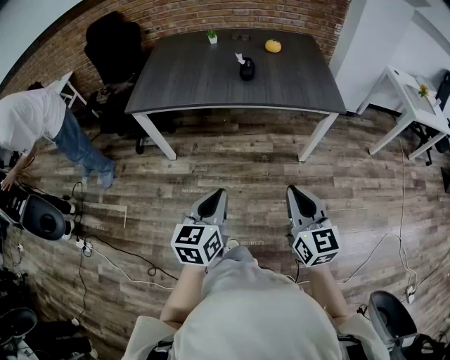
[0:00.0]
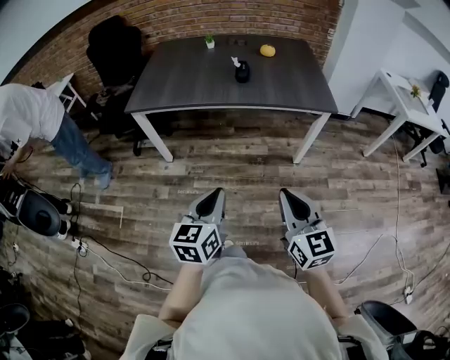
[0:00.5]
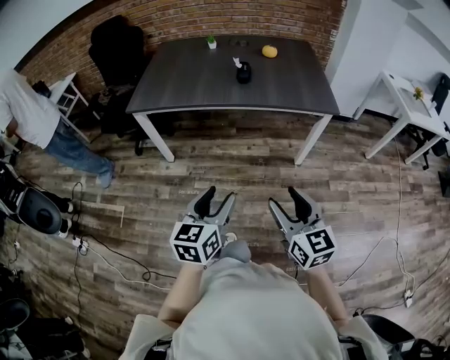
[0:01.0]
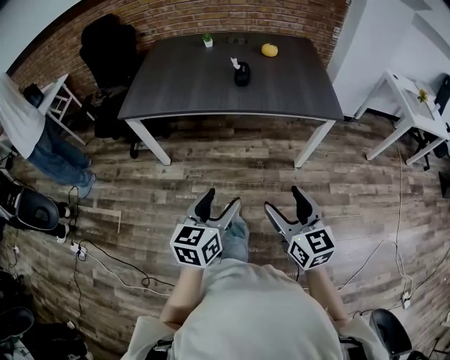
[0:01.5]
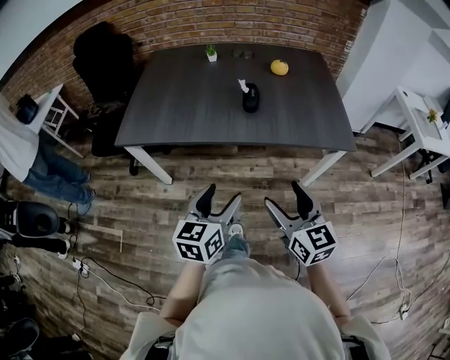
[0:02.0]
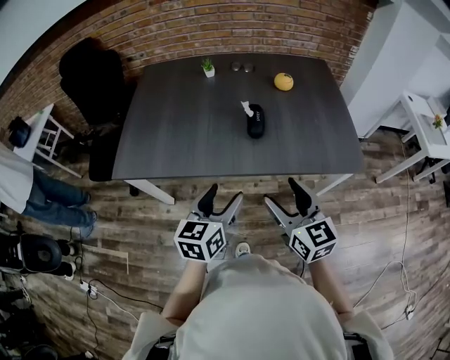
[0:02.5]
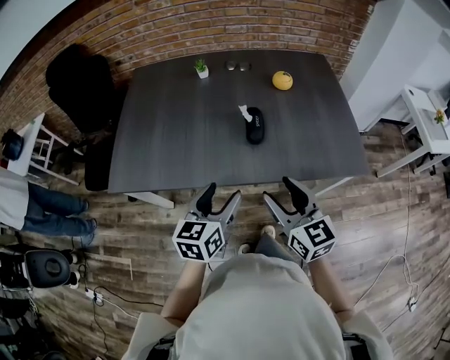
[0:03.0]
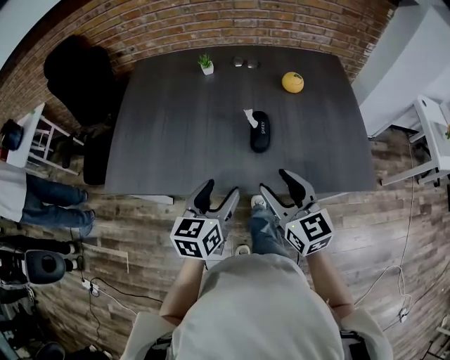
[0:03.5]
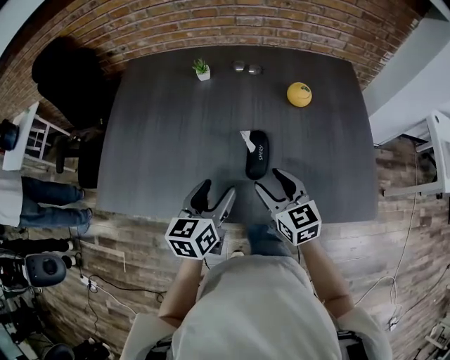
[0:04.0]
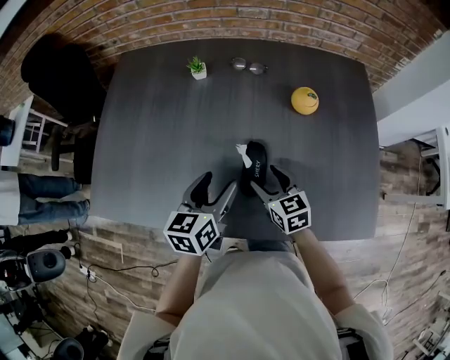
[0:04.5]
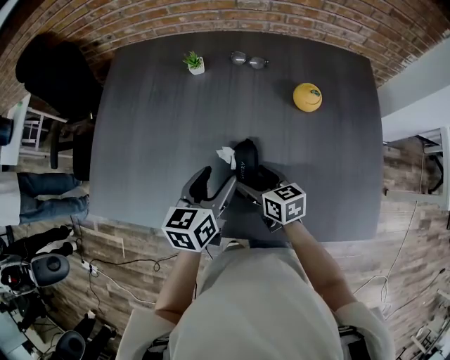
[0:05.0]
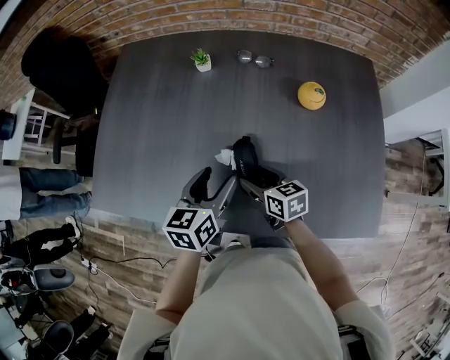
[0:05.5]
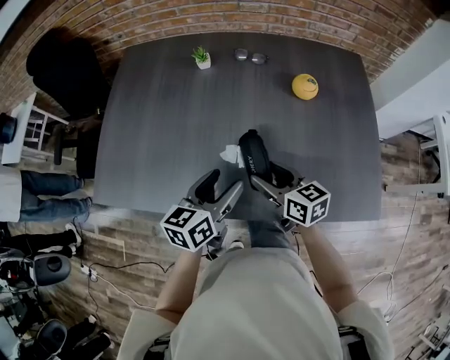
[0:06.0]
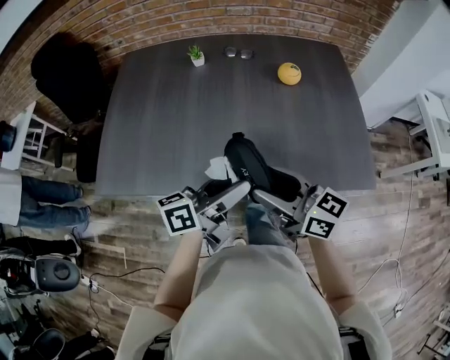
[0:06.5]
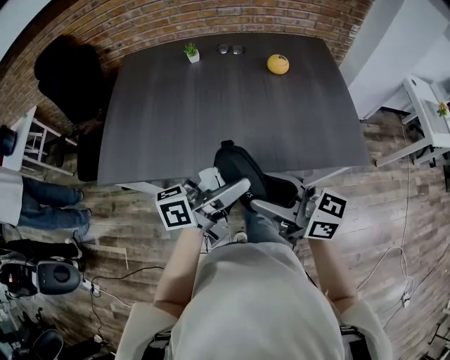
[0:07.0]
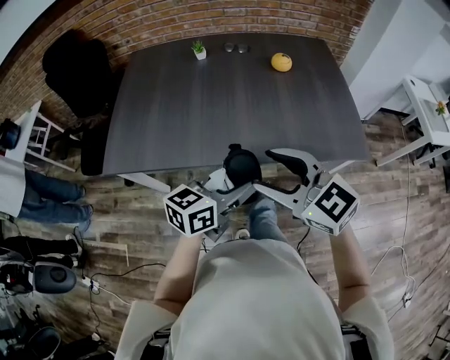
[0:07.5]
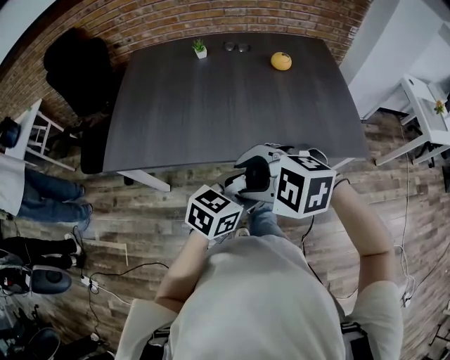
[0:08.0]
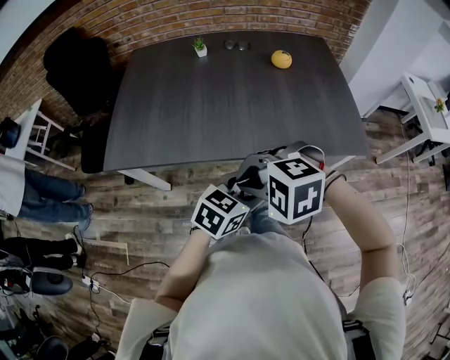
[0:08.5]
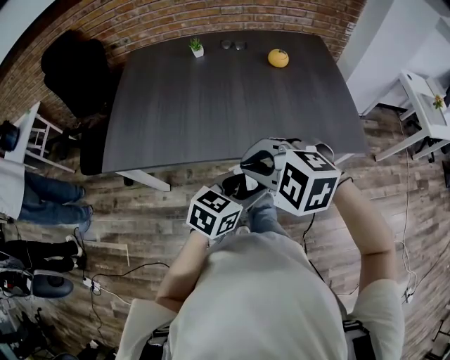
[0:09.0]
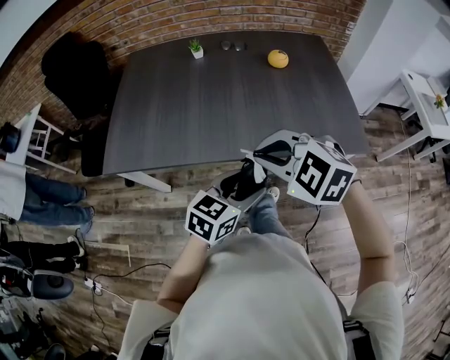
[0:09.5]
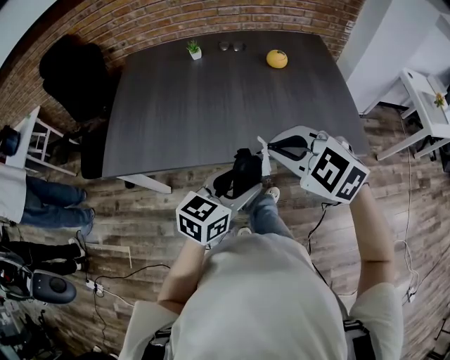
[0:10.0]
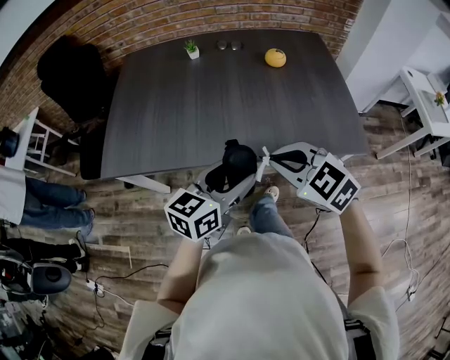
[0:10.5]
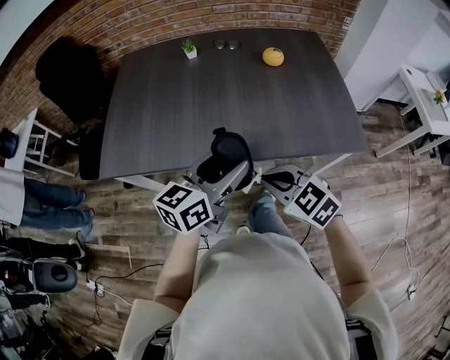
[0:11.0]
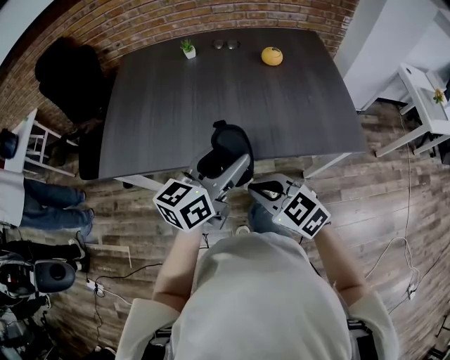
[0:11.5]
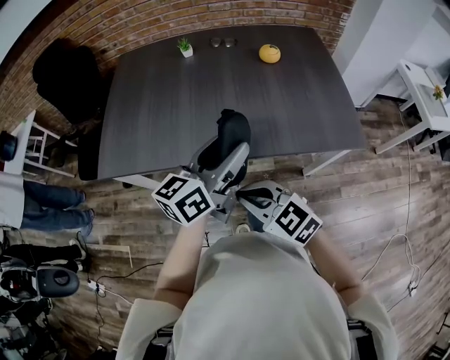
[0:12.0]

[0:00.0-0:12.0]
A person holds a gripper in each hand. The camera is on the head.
0:00.0 to 0:02.0: The grippers both shift forward by about 20 cm. The right gripper opens its fingers. The left gripper opens.
0:02.0 to 0:04.0: The grippers both shift forward by about 40 cm.
0:04.0 to 0:06.0: The left gripper reaches roughly 10 cm forward, then returns, while the right gripper reaches some 10 cm downward, then returns, and changes its angle by approximately 20 degrees.
0:06.0 to 0:08.0: The right gripper ends up about 35 cm from where it was, and rolls counterclockwise, seen from behind, by roughly 60 degrees. The left gripper goes upward and returns, roughly 10 cm each way, and turns by some 30 degrees.
0:08.0 to 0:10.0: The right gripper ends up approximately 10 cm from where it was, turns by about 20 degrees, and closes up.
0:10.0 to 0:12.0: The right gripper shifts roughly 15 cm downward, backward and to the left, and rotates approximately 30 degrees. The left gripper moves upward and forward, about 10 cm, and changes its angle by some 30 degrees.

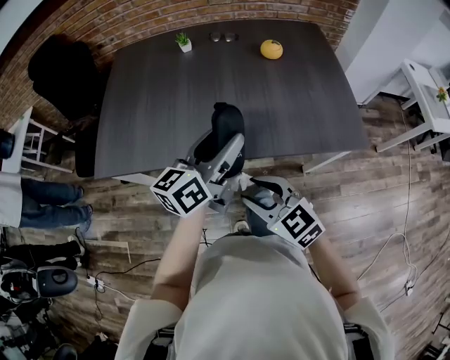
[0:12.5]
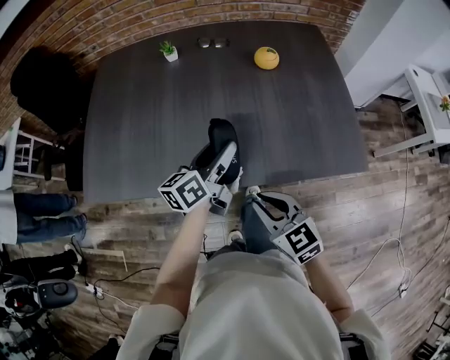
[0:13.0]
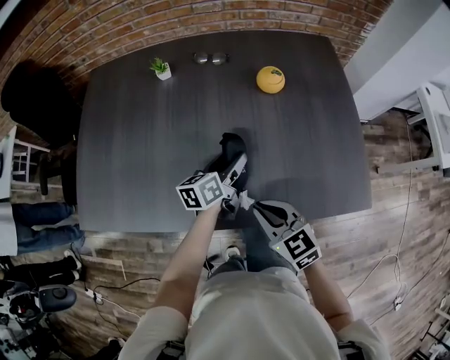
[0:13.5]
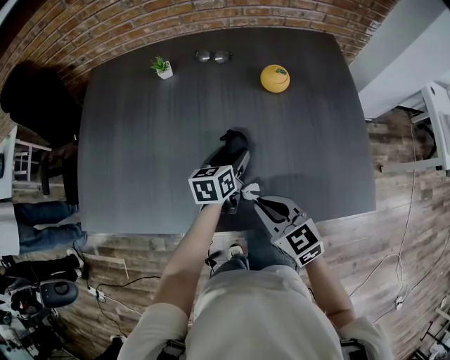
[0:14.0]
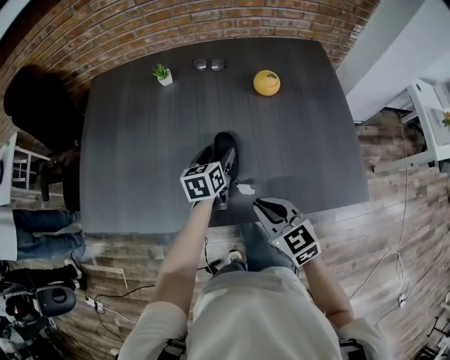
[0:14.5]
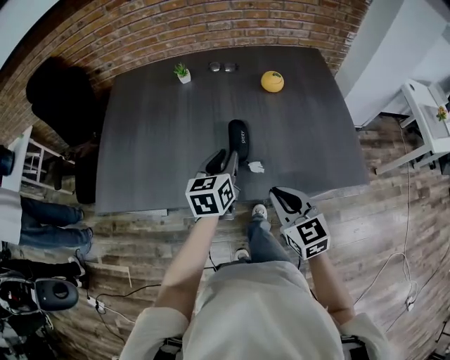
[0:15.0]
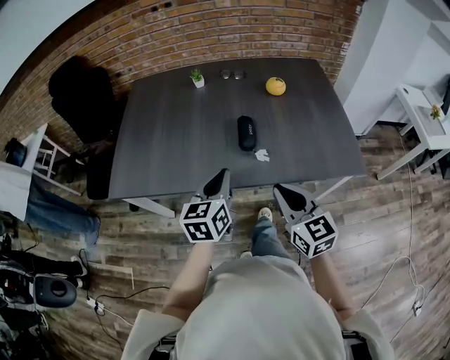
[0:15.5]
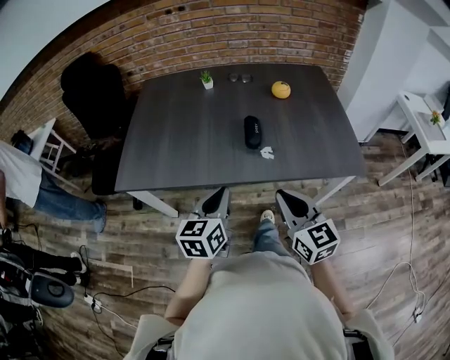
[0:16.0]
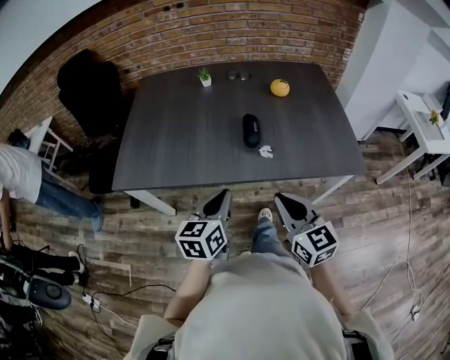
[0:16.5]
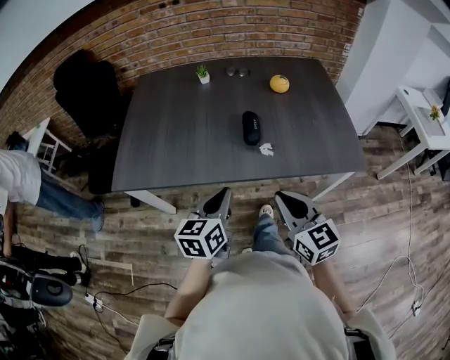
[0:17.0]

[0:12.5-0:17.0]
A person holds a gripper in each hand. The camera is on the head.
0:12.5 to 0:14.5: The right gripper moves forward and to the right, roughly 20 cm, and closes its fingers. The left gripper heads forward and downward, covering approximately 30 cm, and tilts its fingers approximately 30 degrees downward.
0:14.5 to 0:17.0: The right gripper heads backward and upward, covering approximately 20 cm. Meanwhile the left gripper heads backward and upward, covering some 35 cm, and closes.

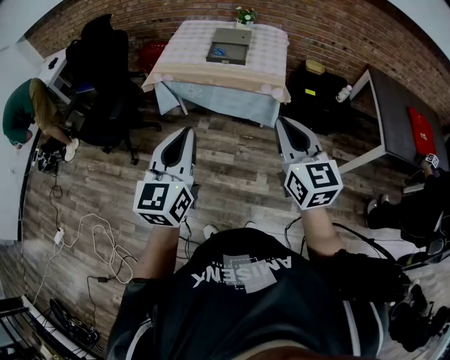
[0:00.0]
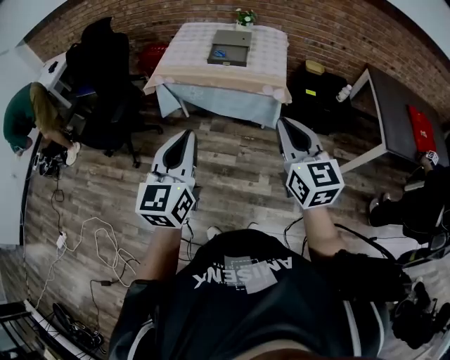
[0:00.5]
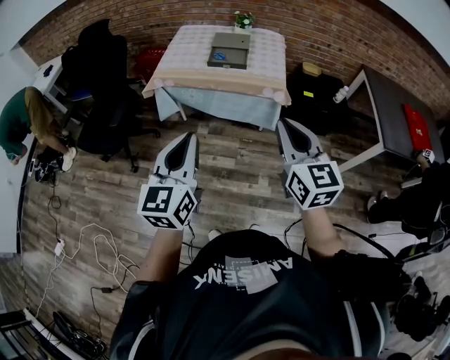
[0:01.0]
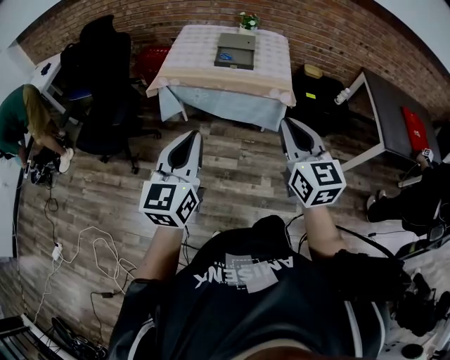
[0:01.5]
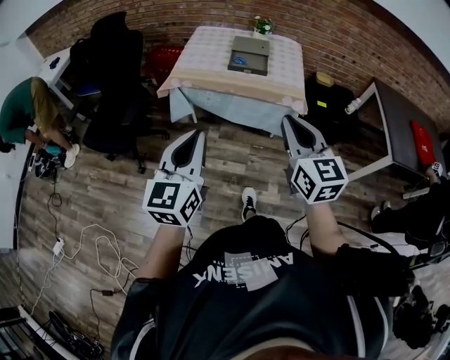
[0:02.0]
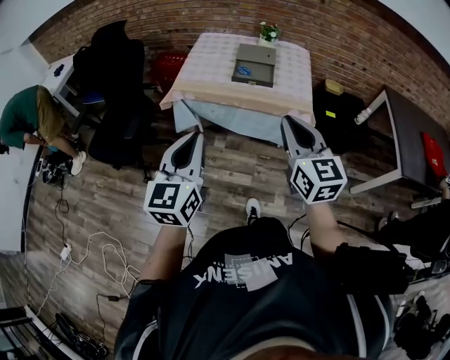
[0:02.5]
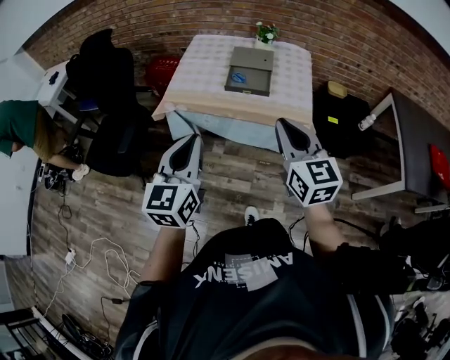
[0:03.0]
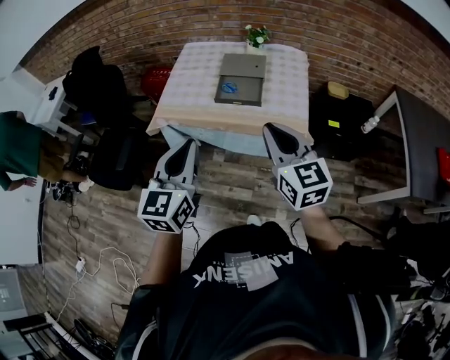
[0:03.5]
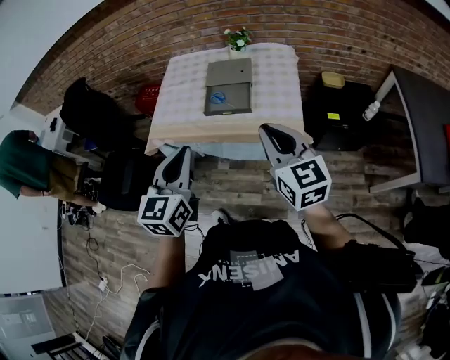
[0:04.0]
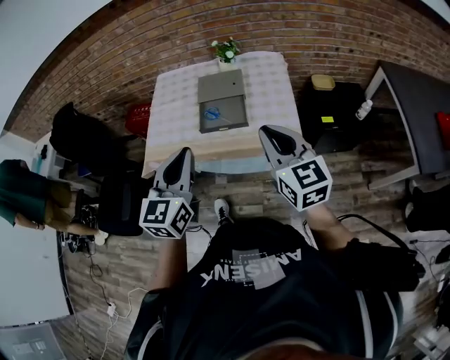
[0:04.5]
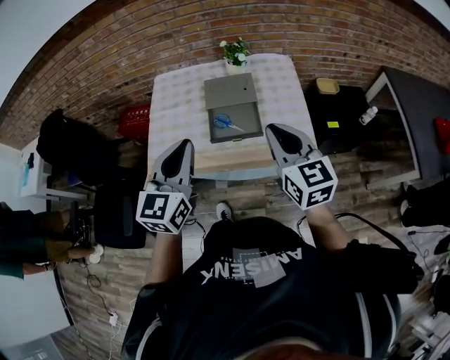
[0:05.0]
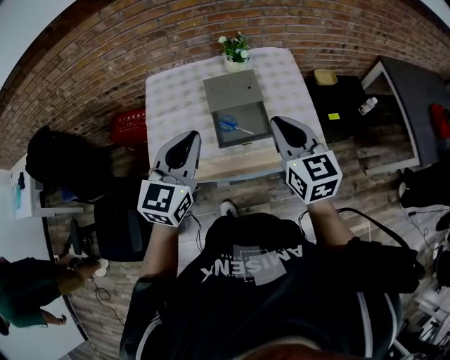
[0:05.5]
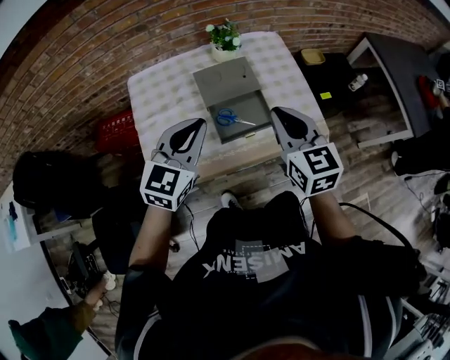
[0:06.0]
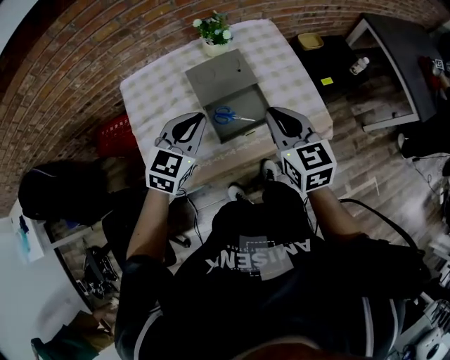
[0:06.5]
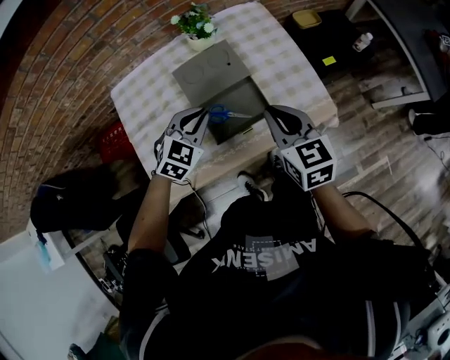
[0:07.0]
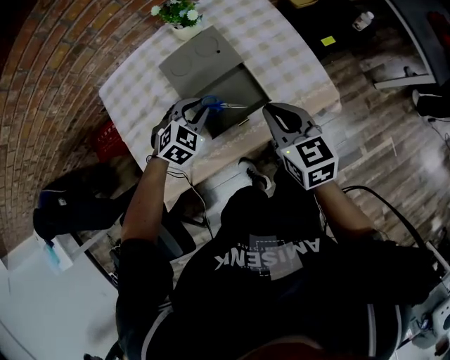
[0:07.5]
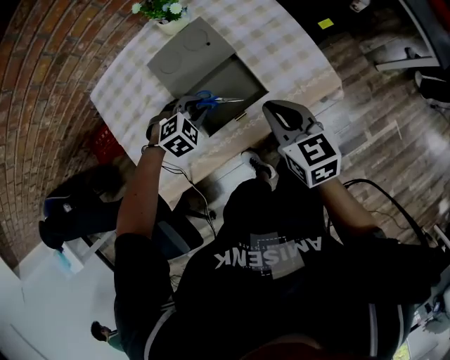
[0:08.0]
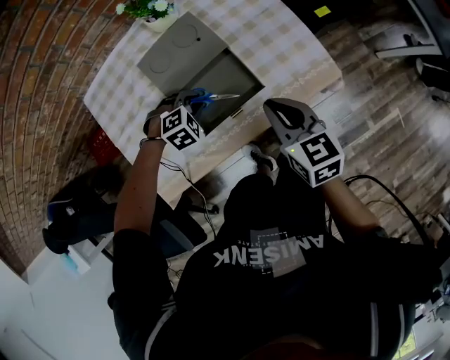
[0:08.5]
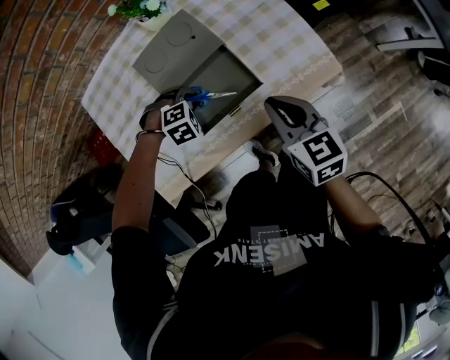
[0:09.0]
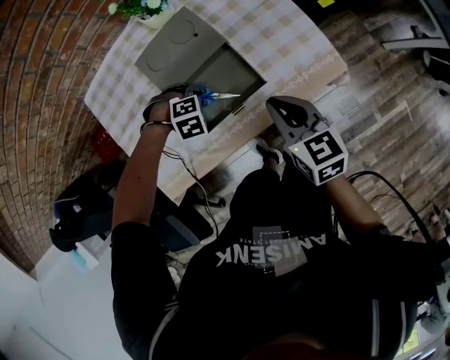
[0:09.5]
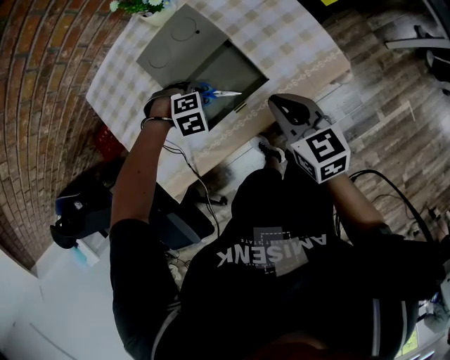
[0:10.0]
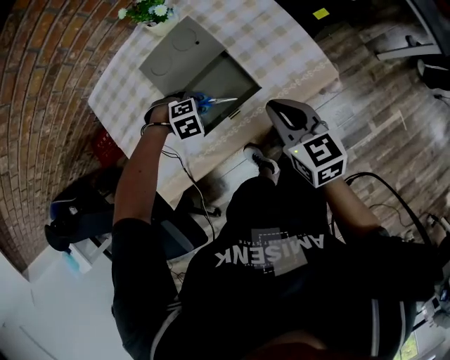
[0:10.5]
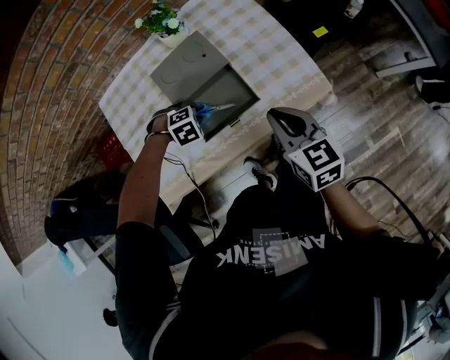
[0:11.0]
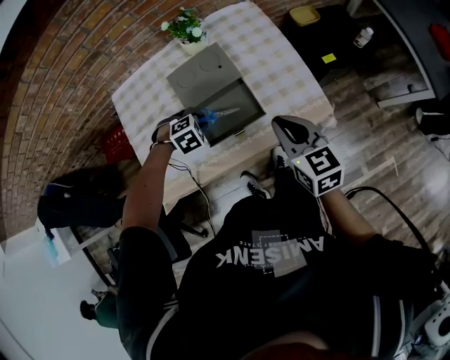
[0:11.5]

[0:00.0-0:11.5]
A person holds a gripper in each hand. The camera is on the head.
0:00.0 to 0:02.0: Both grippers travel together to the left, some 15 cm.
0:02.0 to 0:04.0: Both grippers travel together forward and to the right, roughly 40 cm.
0:04.0 to 0:06.0: The left gripper ends up some 40 cm from where it was, and changes its angle by some 40 degrees. Meanwhile the right gripper shifts by roughly 30 cm, and swivels some 30 degrees.
0:06.0 to 0:07.5: The left gripper heads downward and forward, covering some 30 cm, and tips its fingers downward by about 40 degrees, while the right gripper is displaced downward by some 15 cm.
0:07.5 to 0:09.5: The right gripper shifts about 10 cm downward. Meanwhile the left gripper travels downward by approximately 15 cm, and points its fingers some 40 degrees further downward.
0:09.5 to 0:11.5: The grippers both shift upward by some 10 cm. The left gripper rotates roughly 30 degrees.
